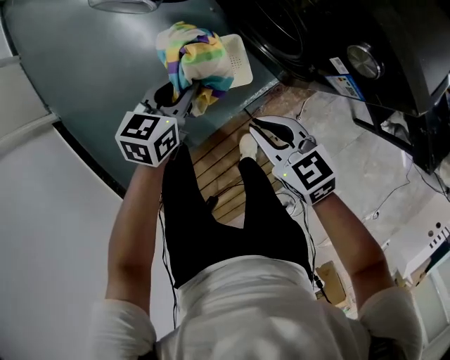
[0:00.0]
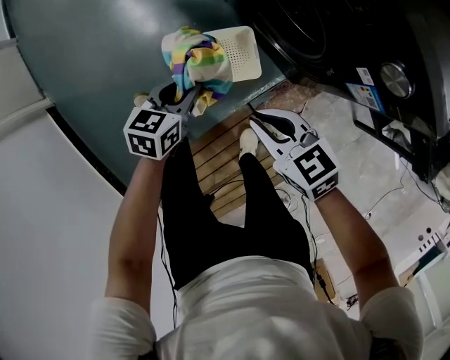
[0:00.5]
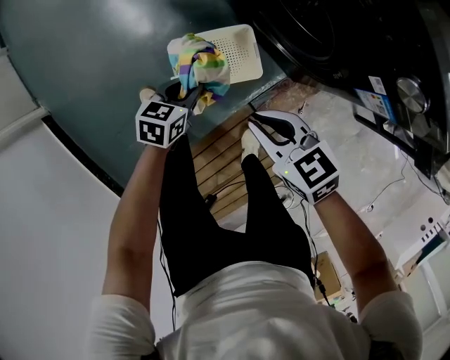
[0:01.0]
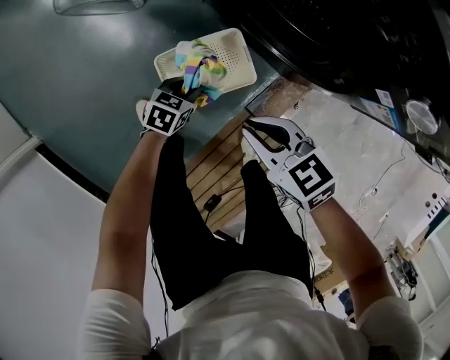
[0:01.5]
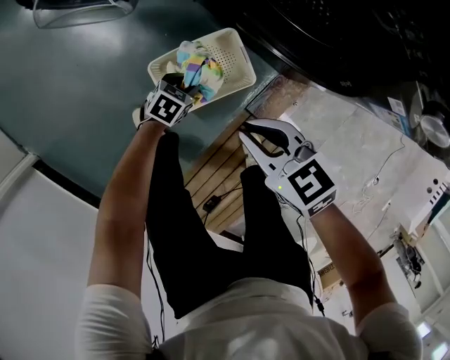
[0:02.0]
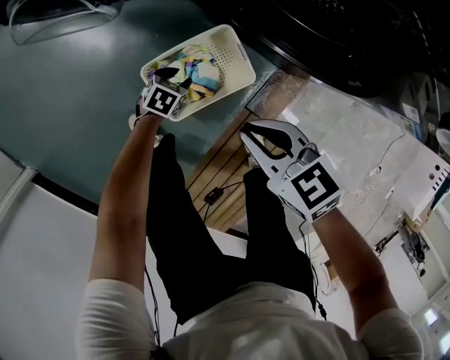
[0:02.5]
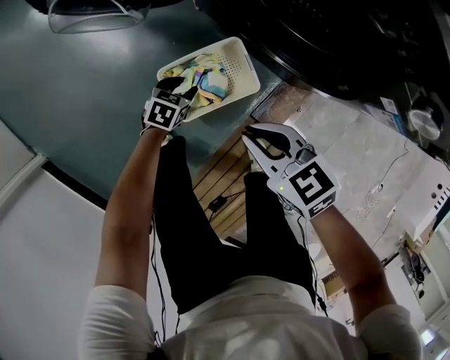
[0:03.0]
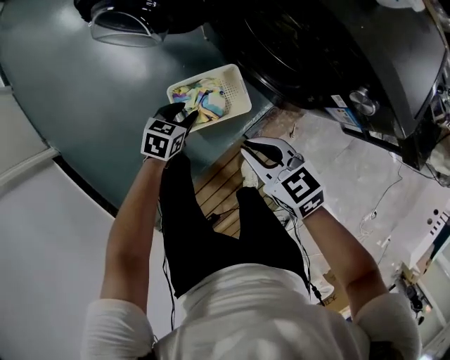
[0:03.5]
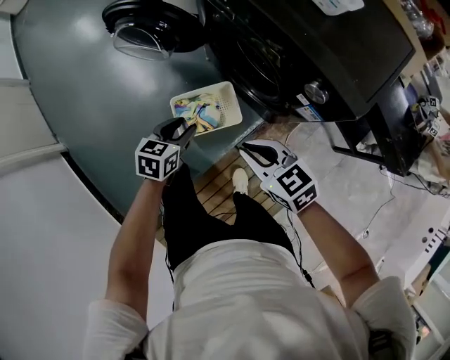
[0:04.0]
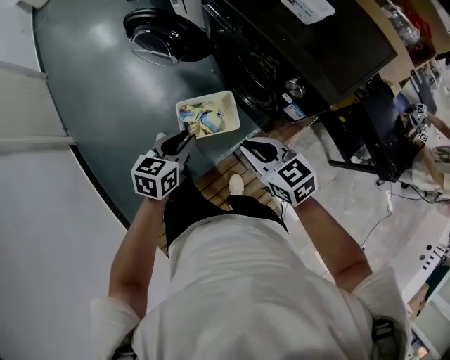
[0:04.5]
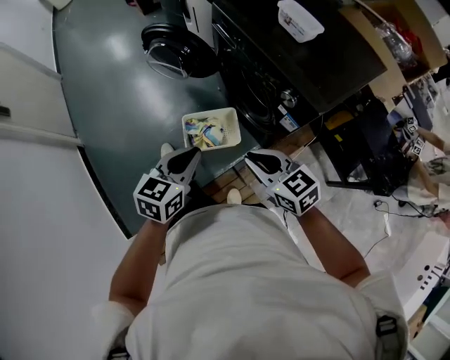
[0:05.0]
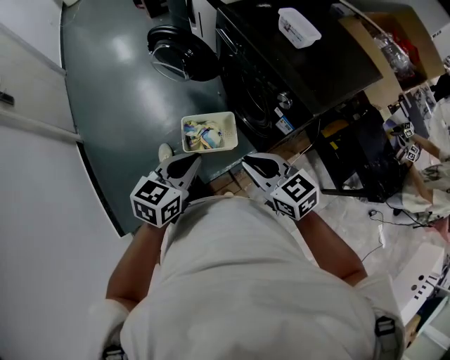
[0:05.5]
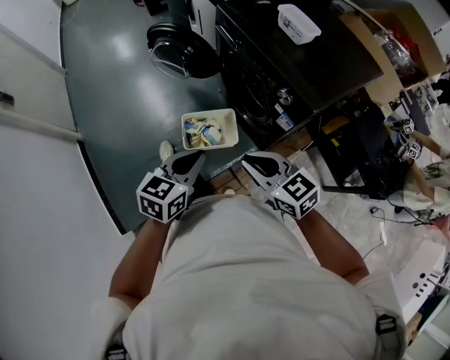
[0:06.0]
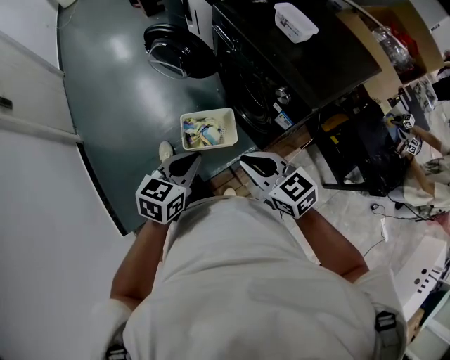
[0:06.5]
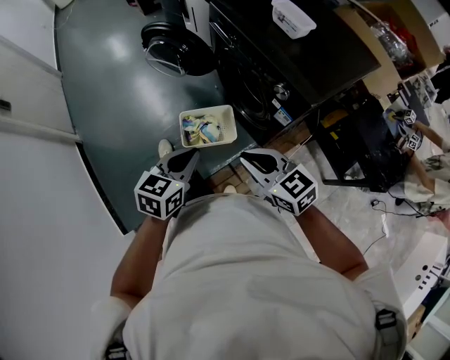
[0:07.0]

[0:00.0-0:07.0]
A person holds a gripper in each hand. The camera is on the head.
0.0 to 2.0 s: The right gripper shifts by roughly 15 cm; the left gripper moves downward, about 30 cm, and turns by about 40 degrees.
2.0 to 3.5 s: The left gripper shifts approximately 20 cm upward, and turns by some 20 degrees; the right gripper goes roughly 10 cm upward.
3.5 to 5.0 s: The right gripper goes approximately 25 cm upward, backward and to the right; the left gripper travels upward and backward by some 40 cm, swivels some 30 degrees, and closes.
5.0 to 7.0 s: There are only small adjustments of the grippers.

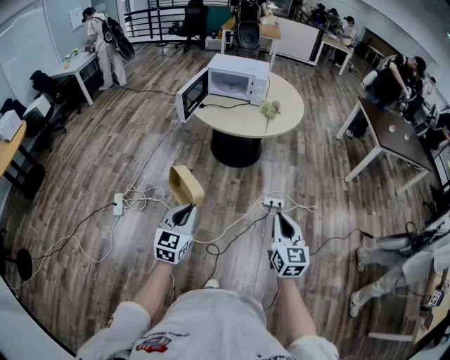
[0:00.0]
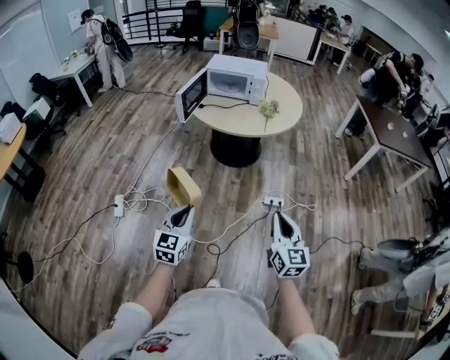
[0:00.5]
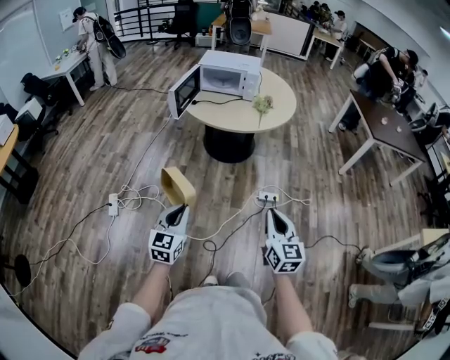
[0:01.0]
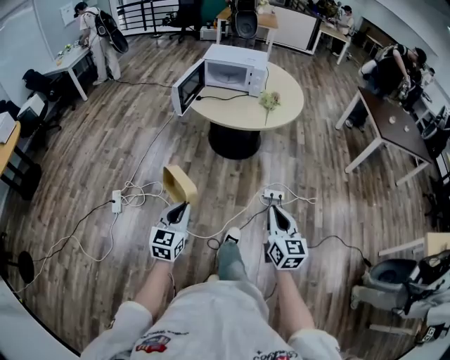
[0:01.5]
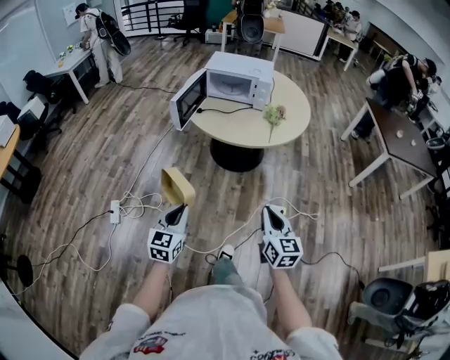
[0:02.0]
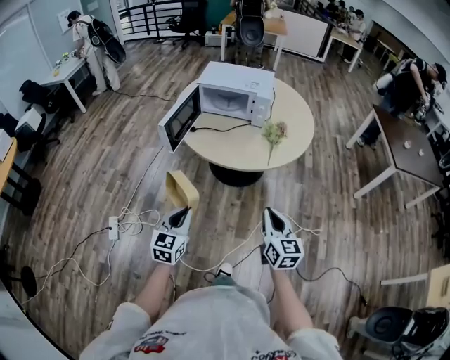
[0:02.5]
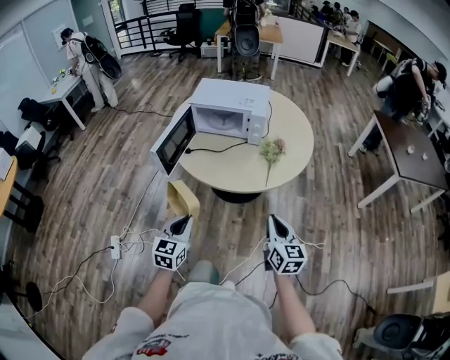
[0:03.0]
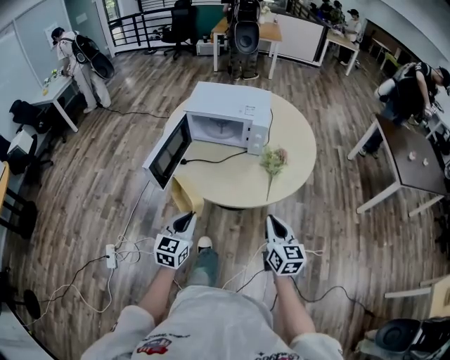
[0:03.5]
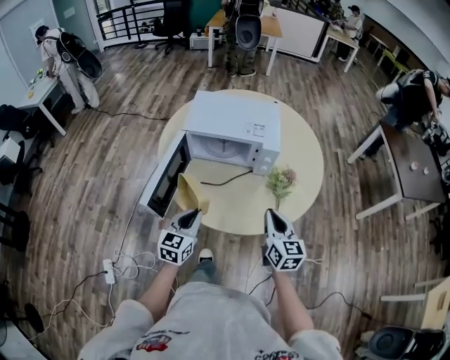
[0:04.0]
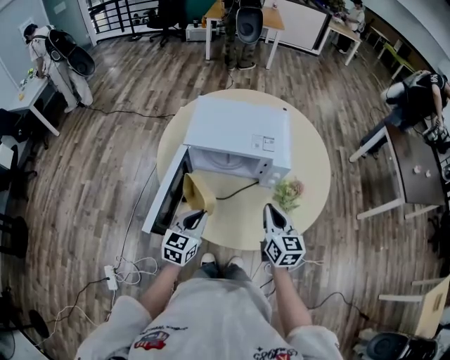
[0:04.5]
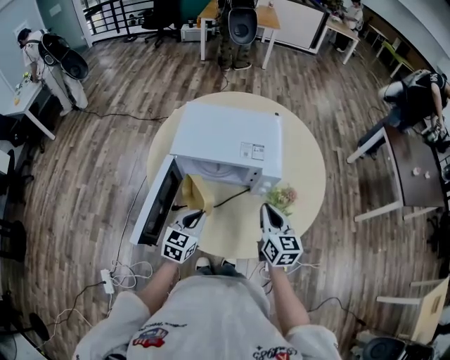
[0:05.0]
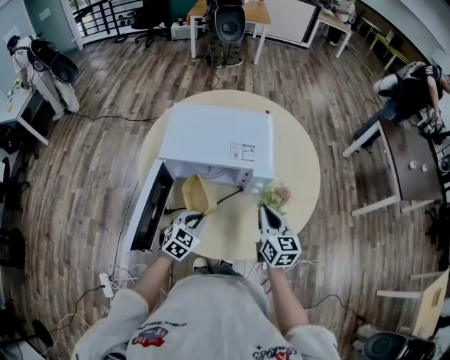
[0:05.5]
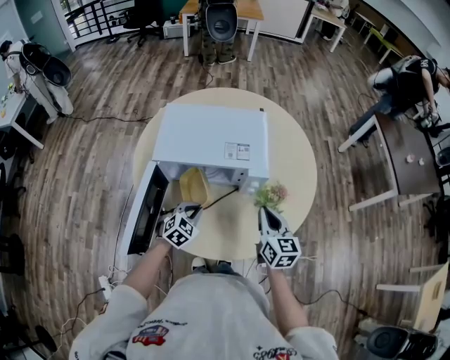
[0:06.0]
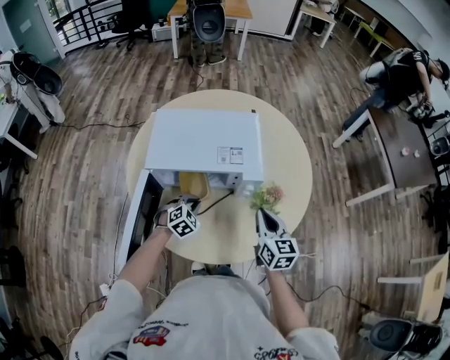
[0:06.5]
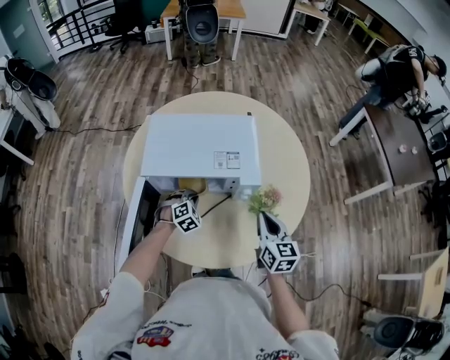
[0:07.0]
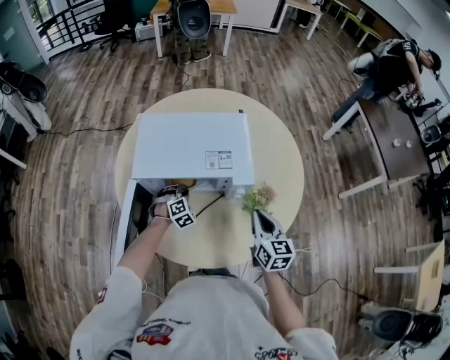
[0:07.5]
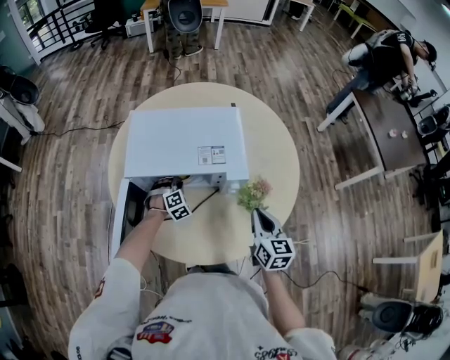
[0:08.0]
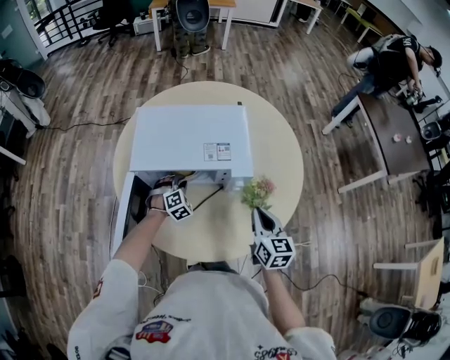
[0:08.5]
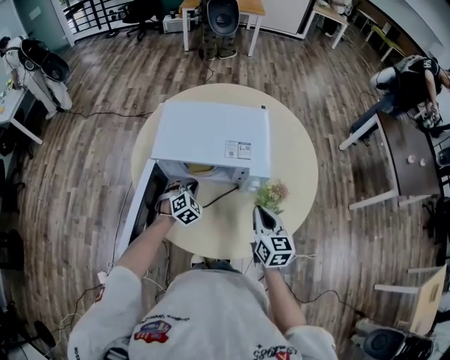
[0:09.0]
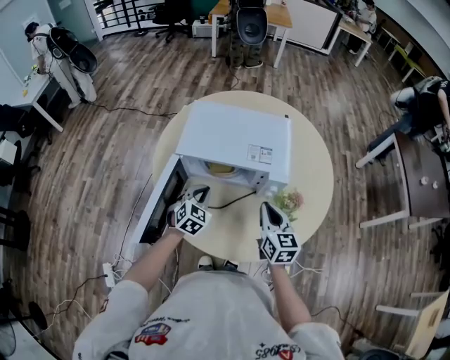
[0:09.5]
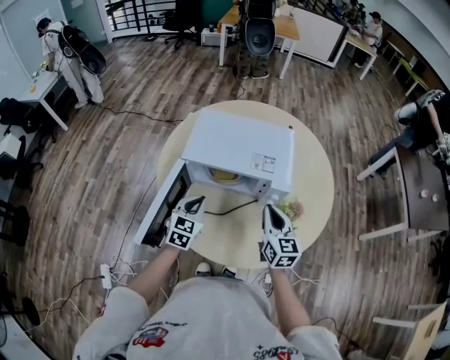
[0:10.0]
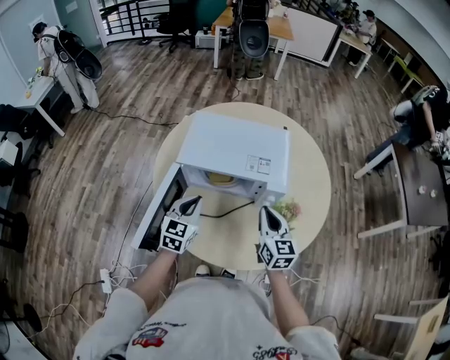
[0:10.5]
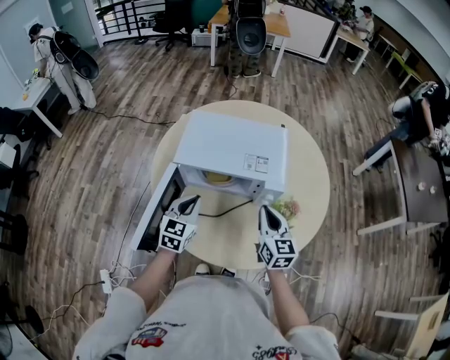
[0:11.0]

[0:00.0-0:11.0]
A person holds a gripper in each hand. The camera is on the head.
0.0 to 2.0 s: Both grippers move forward, some 15 cm.
2.0 to 3.5 s: The pair of grippers is taken forward, roughly 40 cm.
3.5 to 5.5 s: Both grippers move forward, roughly 40 cm. The left gripper rotates about 30 degrees.
5.5 to 7.5 s: The right gripper moves about 5 cm. The left gripper goes roughly 20 cm forward and downward, and changes its angle by about 40 degrees.
7.5 to 9.0 s: The left gripper changes place by about 5 cm.
9.0 to 11.0 s: The right gripper shifts by approximately 5 cm. Meanwhile the left gripper goes some 15 cm upward and backward, and rotates roughly 50 degrees.

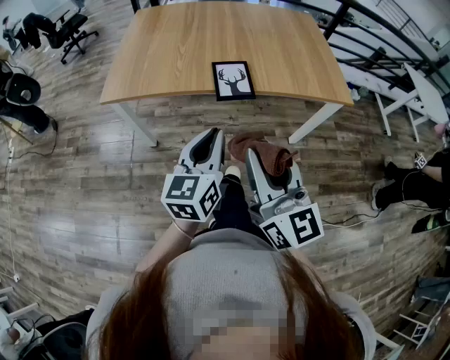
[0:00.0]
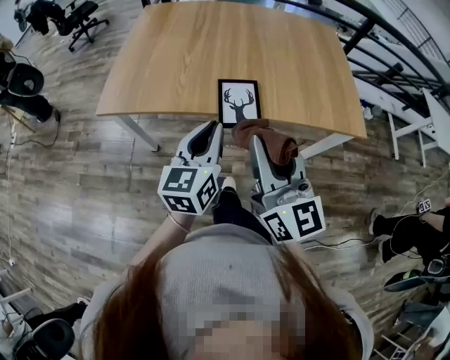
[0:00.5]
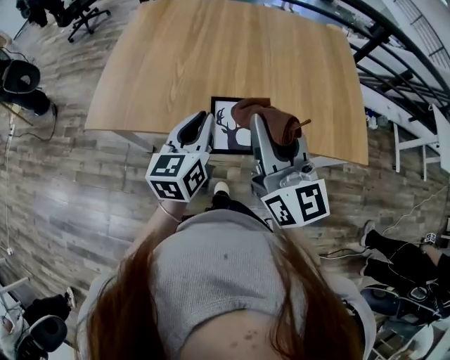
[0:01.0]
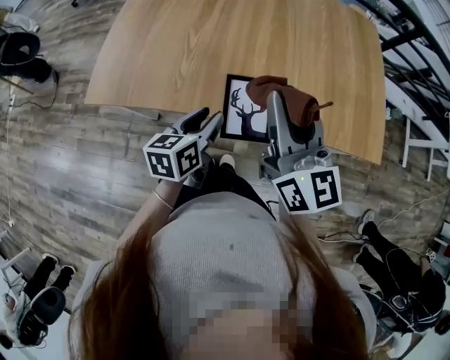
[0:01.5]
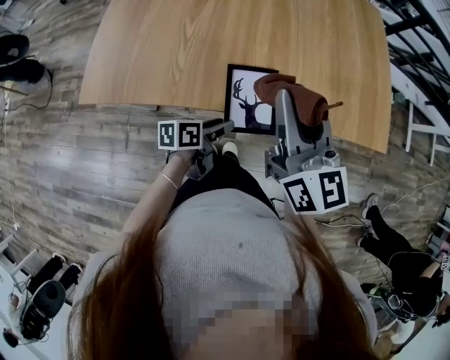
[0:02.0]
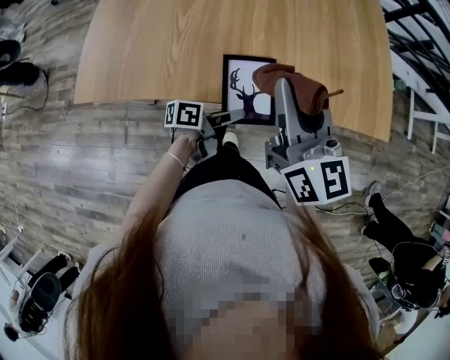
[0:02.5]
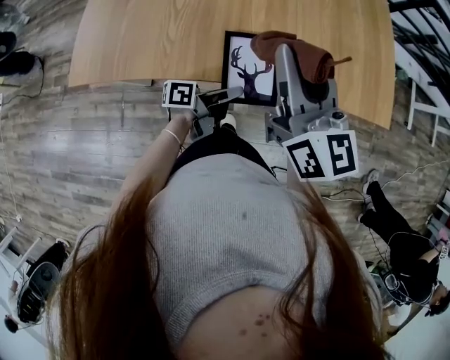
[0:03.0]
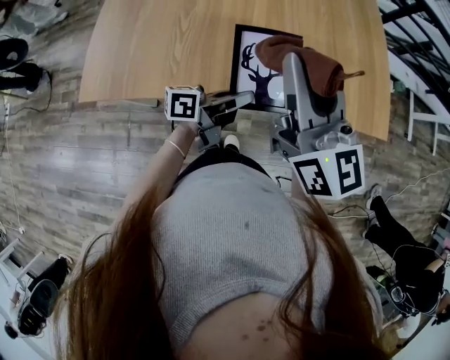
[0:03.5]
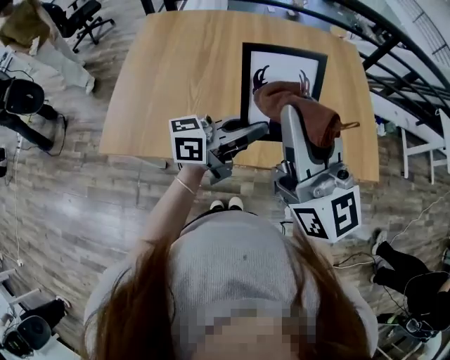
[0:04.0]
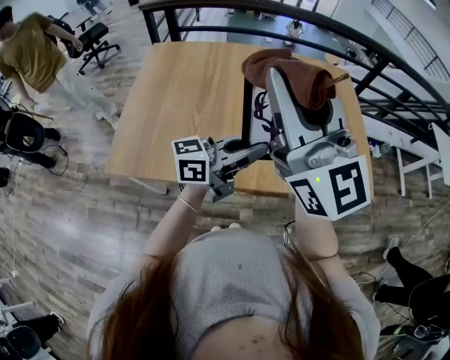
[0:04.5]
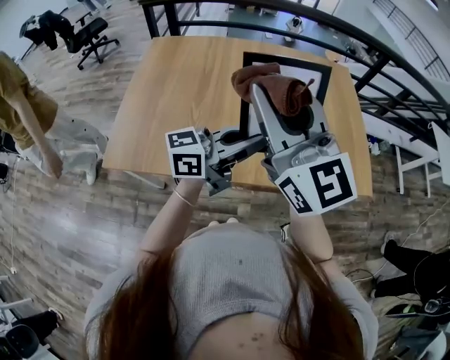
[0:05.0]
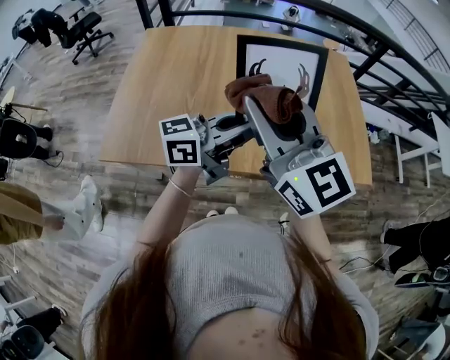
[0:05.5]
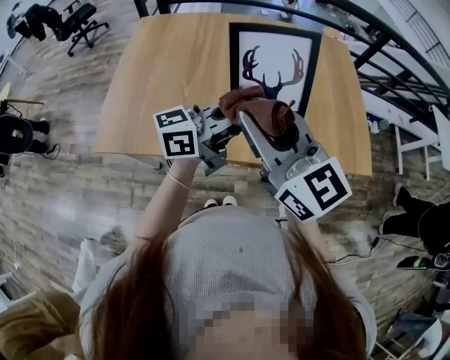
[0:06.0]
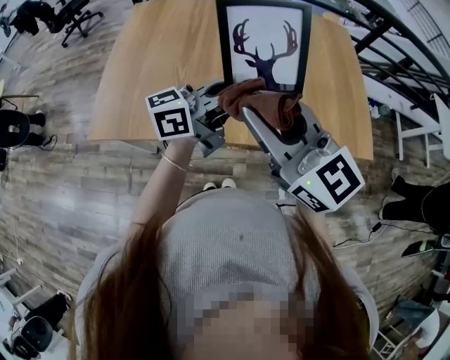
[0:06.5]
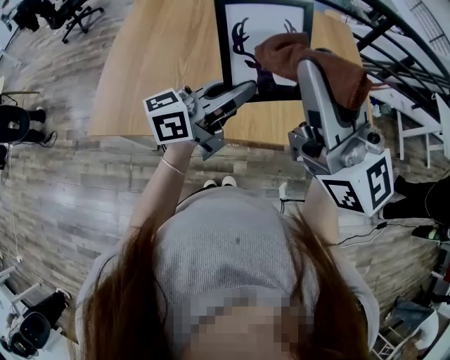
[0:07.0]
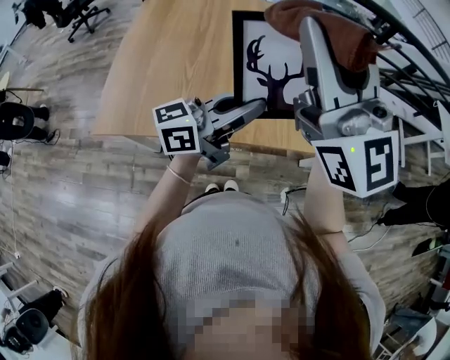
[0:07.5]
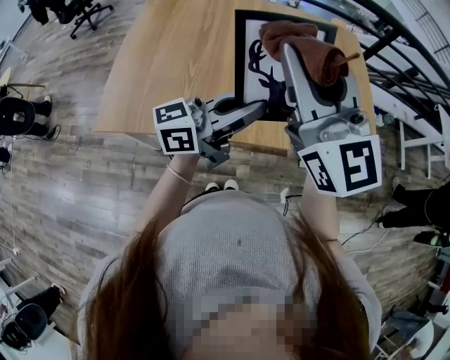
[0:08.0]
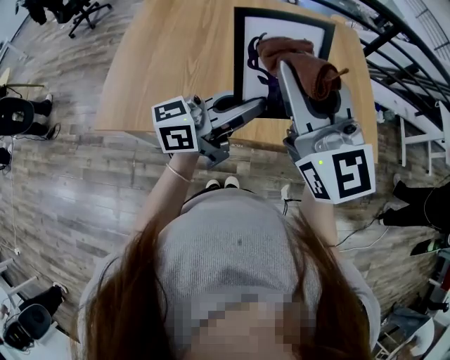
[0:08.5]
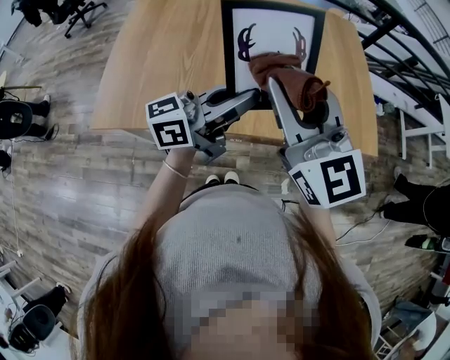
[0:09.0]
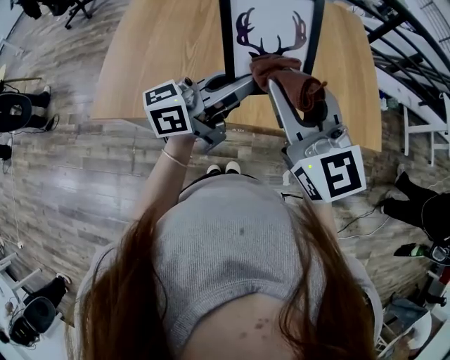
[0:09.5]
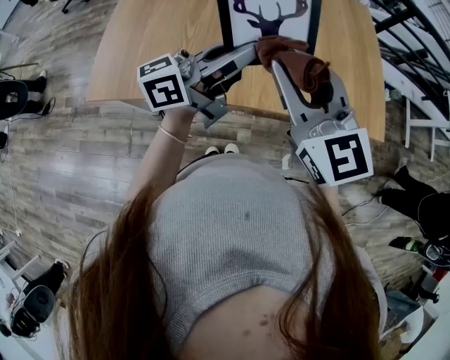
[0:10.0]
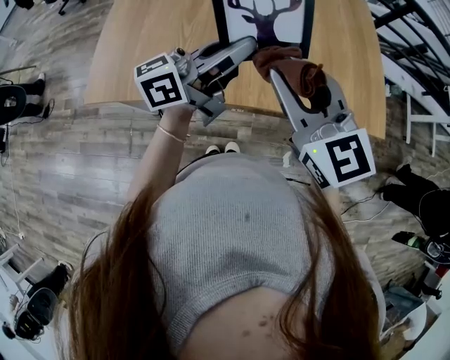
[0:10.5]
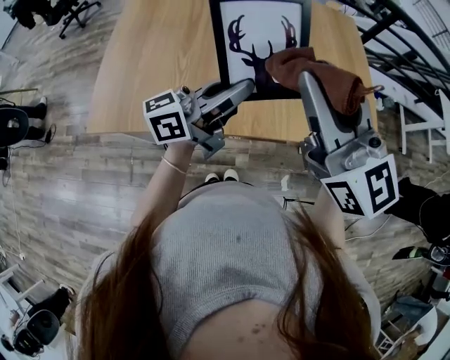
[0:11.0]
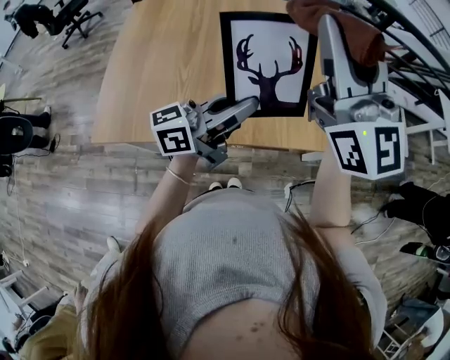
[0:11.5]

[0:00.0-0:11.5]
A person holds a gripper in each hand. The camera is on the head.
0.0 to 2.0 s: The left gripper goes roughly 35 cm forward and downward, swivels about 60 degrees, and opens up, while the right gripper moves forward, roughly 35 cm.
2.0 to 4.0 s: The left gripper shifts some 25 cm upward, tips its fingers upward by some 40 degrees, and closes. Meanwhile the right gripper goes roughly 15 cm upward, and swivels approximately 20 degrees.
4.0 to 6.0 s: The right gripper travels upward and back again, about 10 cm each way, and turns by approximately 20 degrees.
6.0 to 7.5 s: The right gripper travels upward by some 15 cm, and turns by approximately 30 degrees.
7.5 to 9.5 s: The right gripper moves downward, about 15 cm, and rotates approximately 30 degrees.
9.5 to 11.5 s: The right gripper shifts about 15 cm upward and forward, and swivels about 30 degrees.
